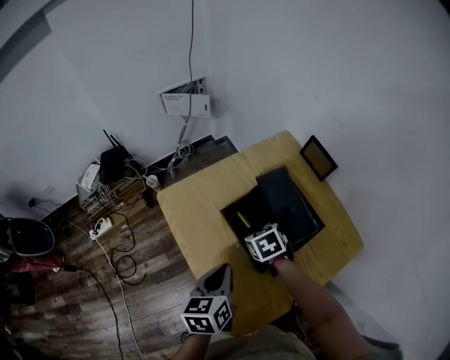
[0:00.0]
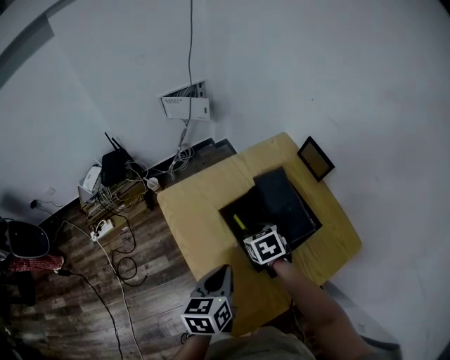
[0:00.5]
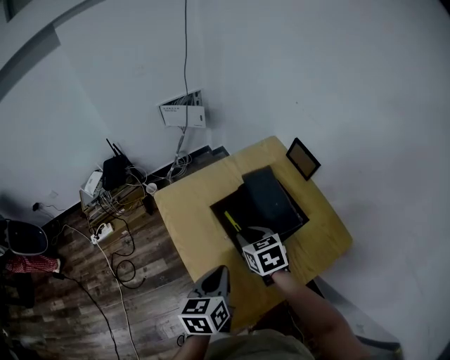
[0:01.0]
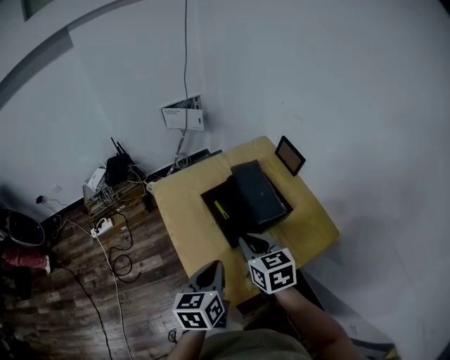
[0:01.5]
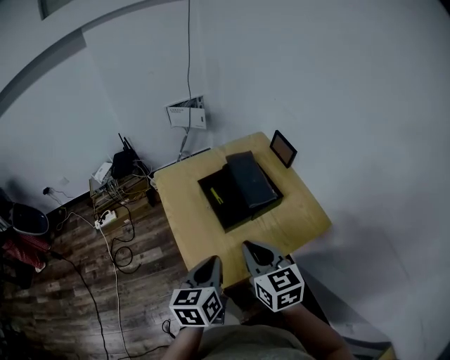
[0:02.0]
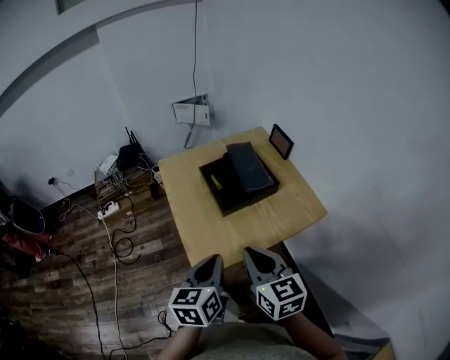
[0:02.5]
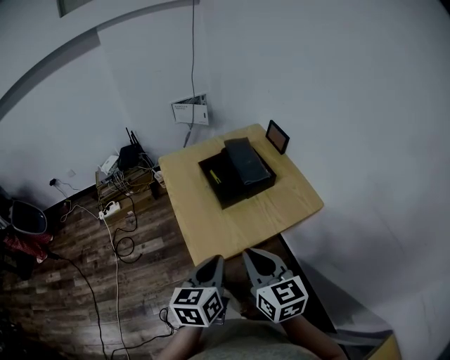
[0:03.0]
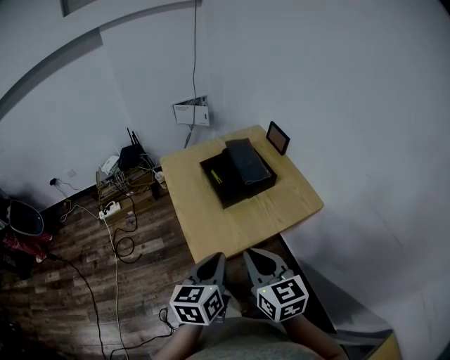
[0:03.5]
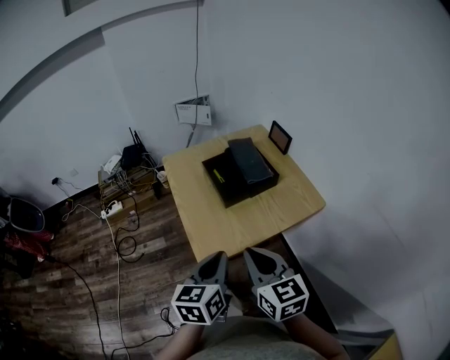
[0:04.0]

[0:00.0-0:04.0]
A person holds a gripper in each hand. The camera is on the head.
0:00.0 to 0:02.0: The right gripper is displaced backward and upward by some 35 cm, and points its fingers roughly 40 degrees further upward, while the left gripper heads backward, upward and to the right, covering roughly 20 cm.
0:02.0 to 0:04.0: The two grippers go about 15 cm backward.

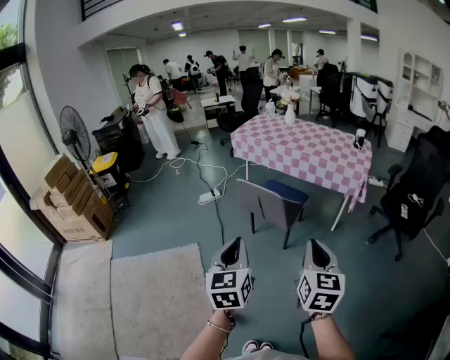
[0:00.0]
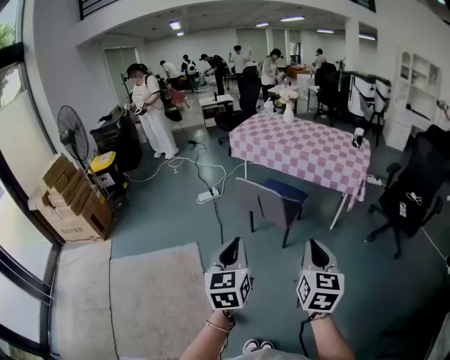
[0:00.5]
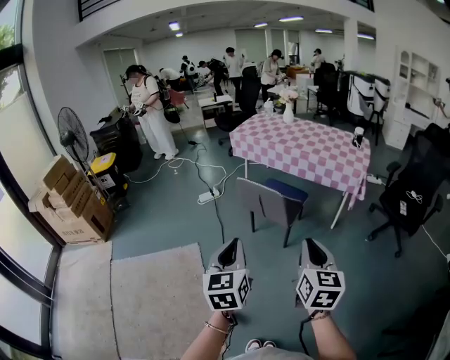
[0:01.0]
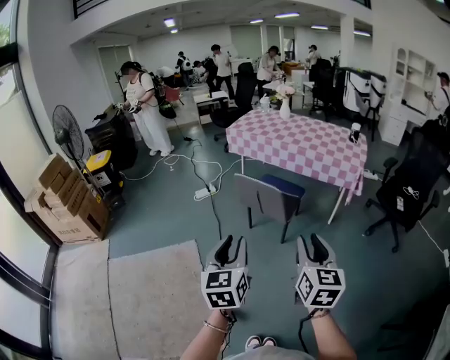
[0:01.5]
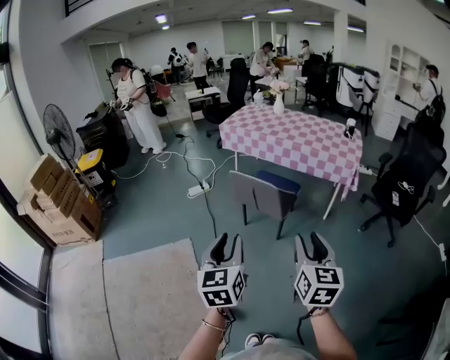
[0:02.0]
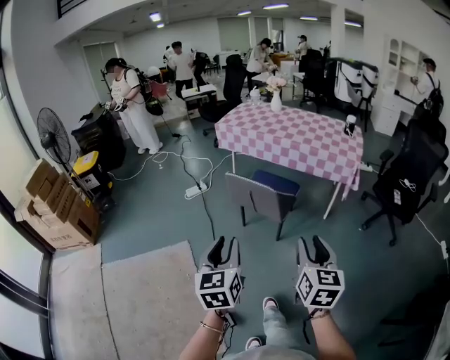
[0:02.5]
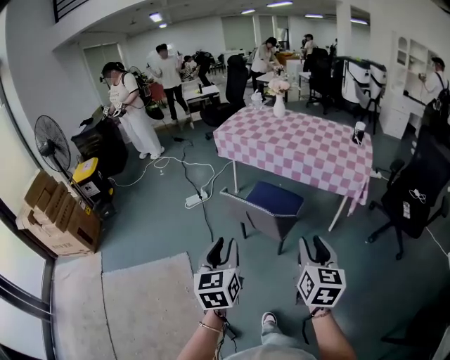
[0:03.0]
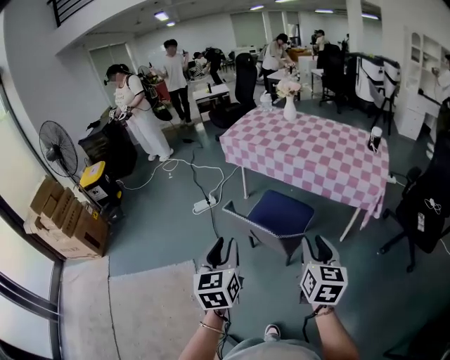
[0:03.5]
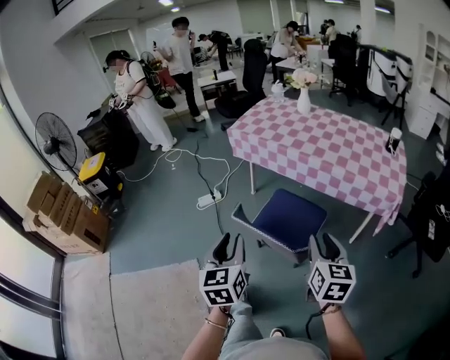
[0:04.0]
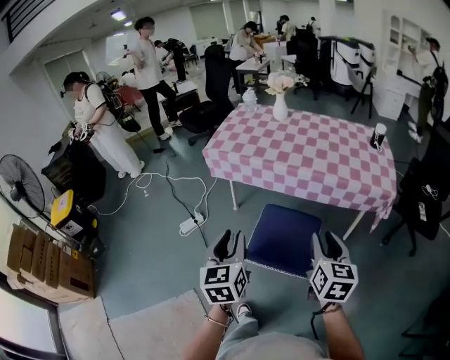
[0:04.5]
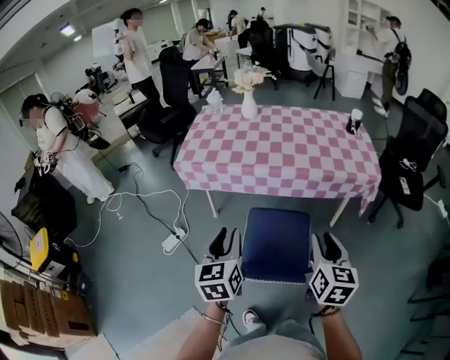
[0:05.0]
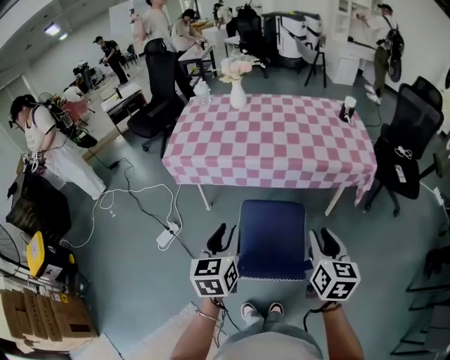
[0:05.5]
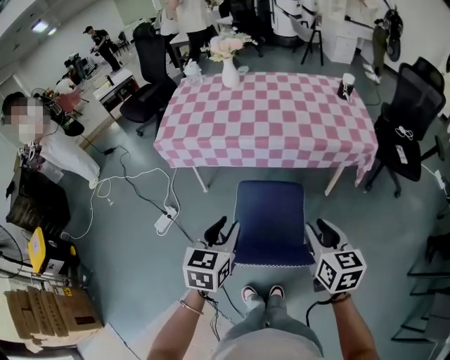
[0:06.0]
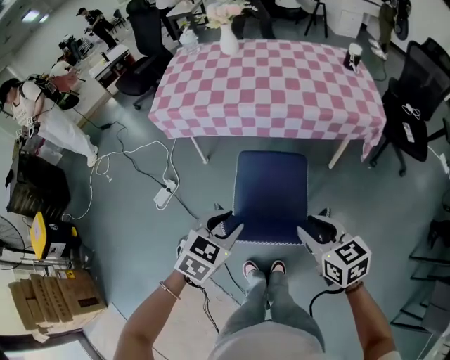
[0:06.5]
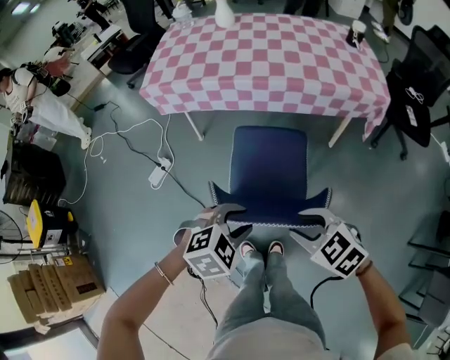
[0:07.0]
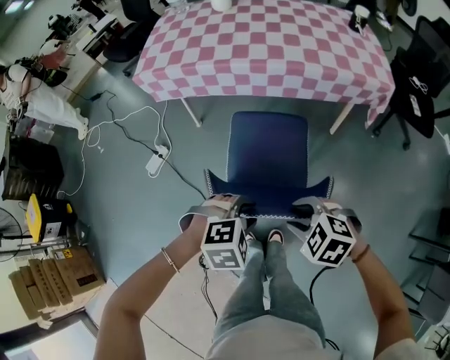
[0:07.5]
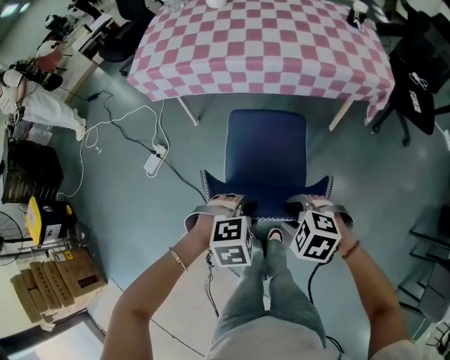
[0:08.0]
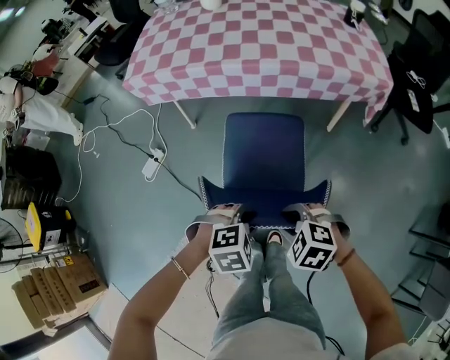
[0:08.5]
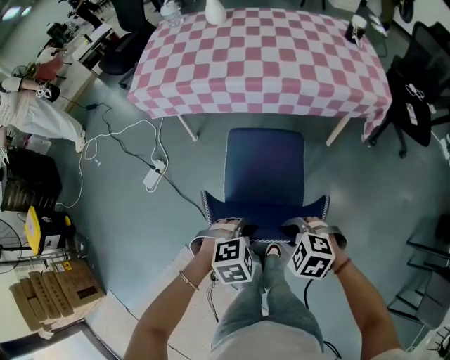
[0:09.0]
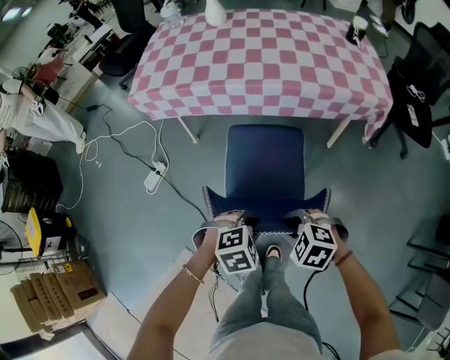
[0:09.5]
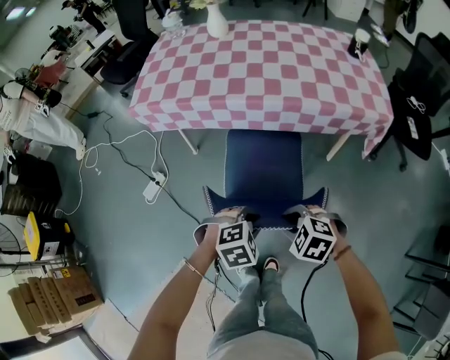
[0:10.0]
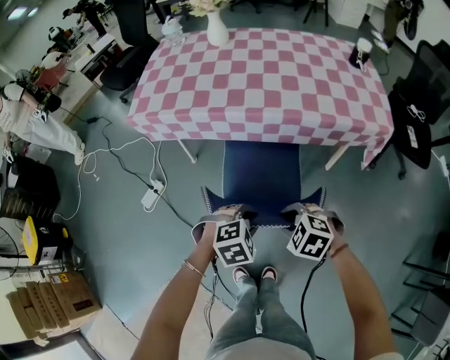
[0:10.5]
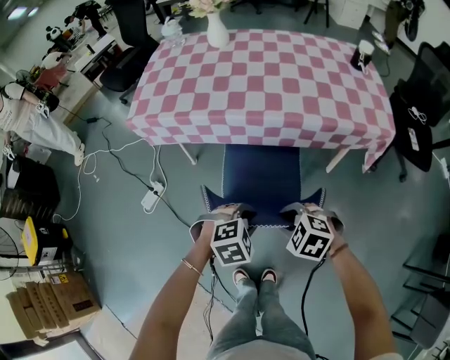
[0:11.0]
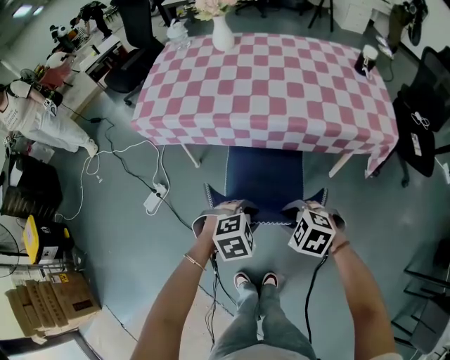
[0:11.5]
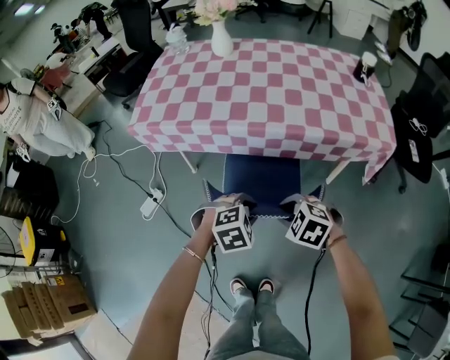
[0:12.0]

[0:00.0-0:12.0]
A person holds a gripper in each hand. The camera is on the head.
0:00.0 to 0:02.0: The left gripper opens up. The right gripper opens.
0:02.0 to 0:04.0: Both grippers move forward, about 40 cm.
0:04.0 to 0:06.0: The left gripper ends up roughly 25 cm from where it was, and turns by roughly 50 degrees. Meanwhile the right gripper moves approximately 15 cm.
0:06.0 to 0:08.0: Both grippers travel together downward, approximately 20 cm. The left gripper tilts its fingers some 40 degrees downward, while the right gripper points its fingers roughly 40 degrees further downward.
0:08.0 to 0:10.0: The left gripper moves roughly 10 cm, while the right gripper moves roughly 10 cm.
0:10.0 to 0:12.0: The right gripper ends up approximately 15 cm from where it was. The left gripper moves about 15 cm.

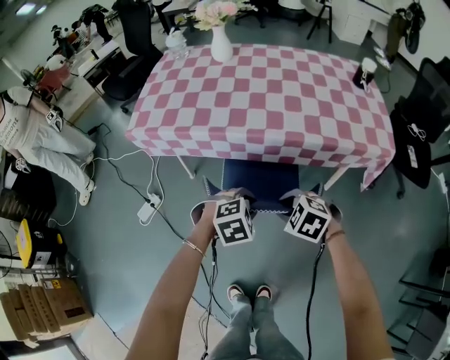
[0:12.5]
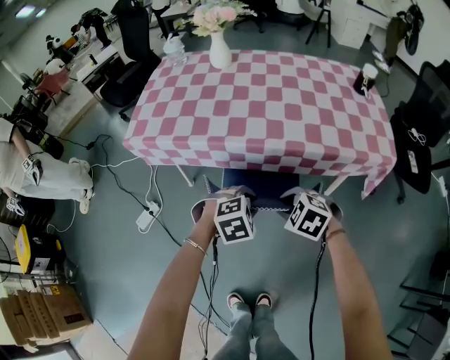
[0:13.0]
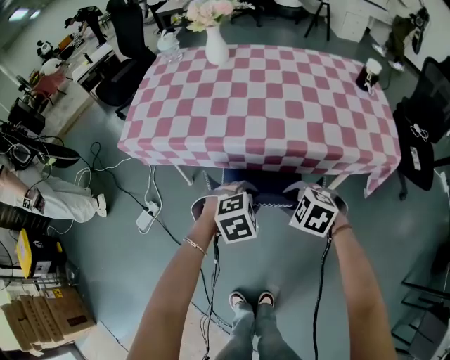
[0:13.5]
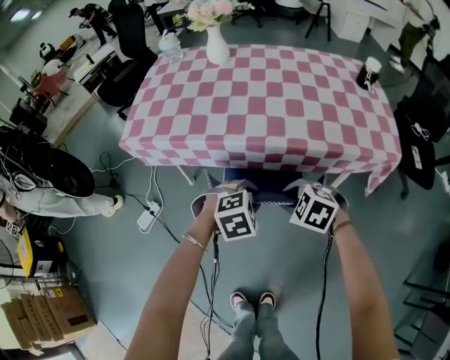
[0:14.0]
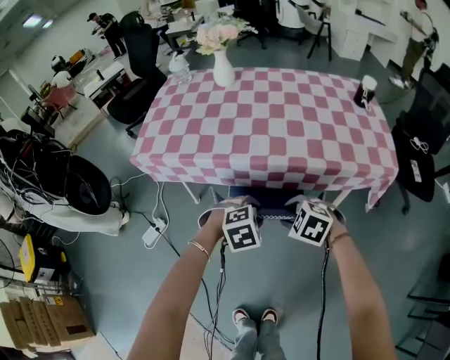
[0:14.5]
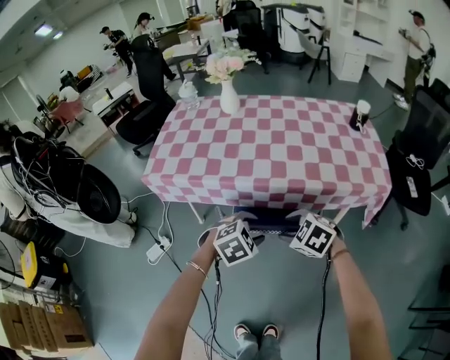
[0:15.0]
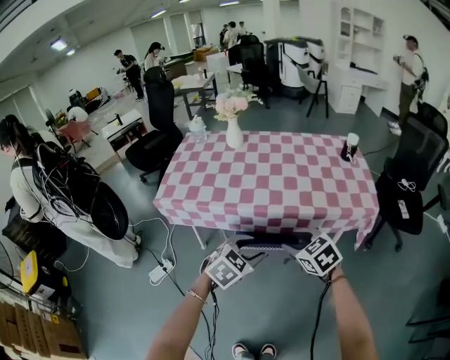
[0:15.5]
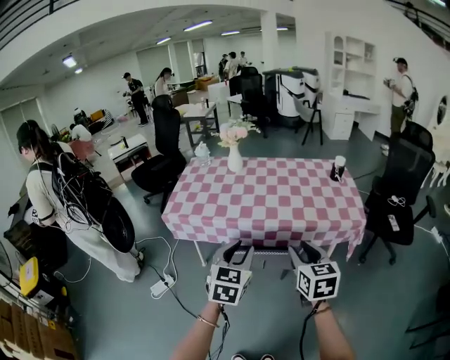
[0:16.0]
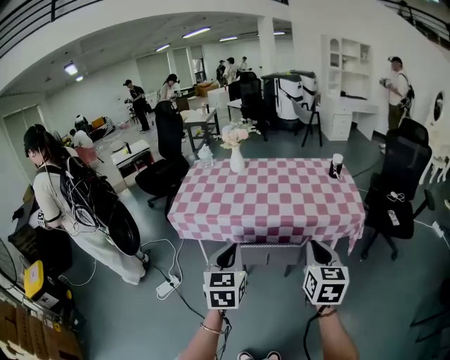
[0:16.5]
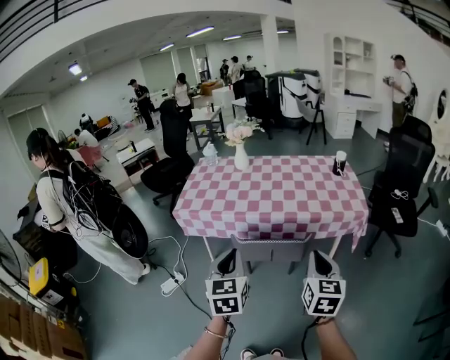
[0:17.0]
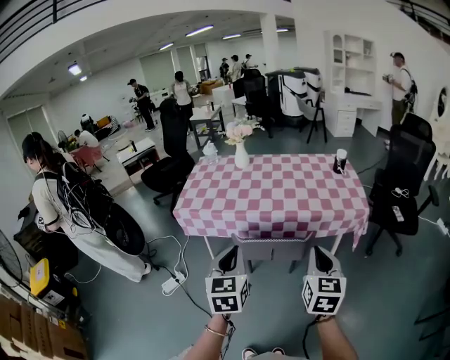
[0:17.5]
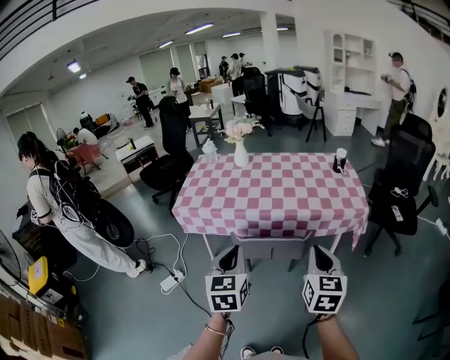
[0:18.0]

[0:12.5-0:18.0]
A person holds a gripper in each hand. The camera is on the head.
0:12.5 to 0:14.5: The two grippers go some 5 cm forward.
0:14.5 to 0:16.0: The two grippers go approximately 30 cm upward. The left gripper angles its fingers upward, by about 50 degrees. The right gripper tips its fingers upward by some 40 degrees.
0:16.0 to 0:18.0: The two grippers go about 10 cm backward. The right gripper closes up. The left gripper closes.

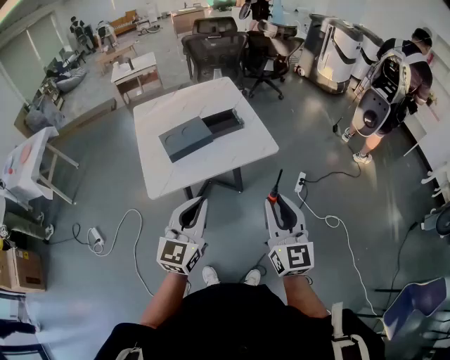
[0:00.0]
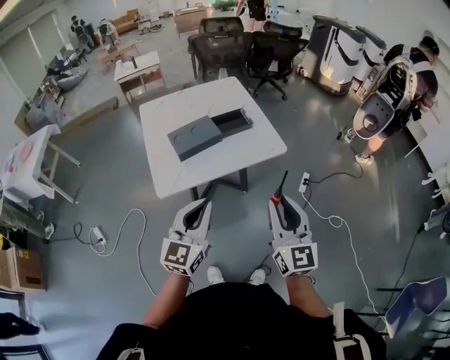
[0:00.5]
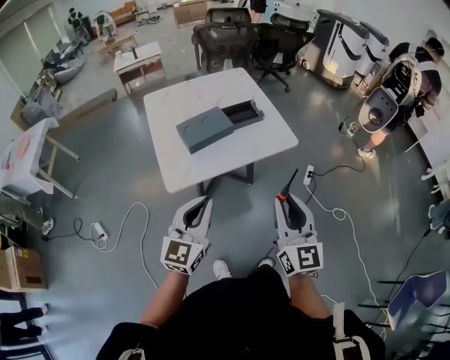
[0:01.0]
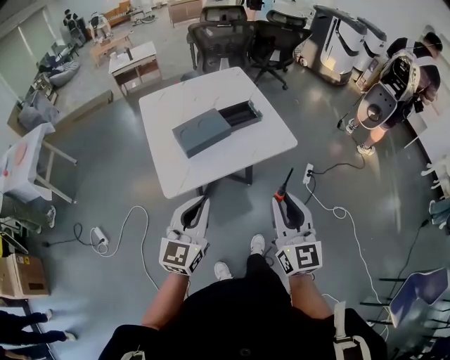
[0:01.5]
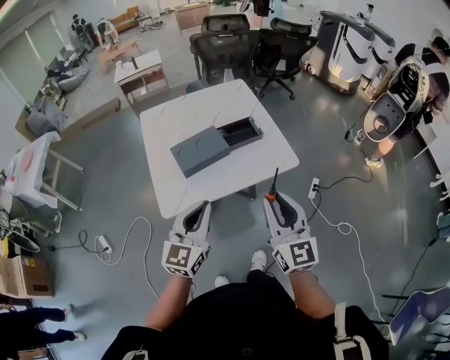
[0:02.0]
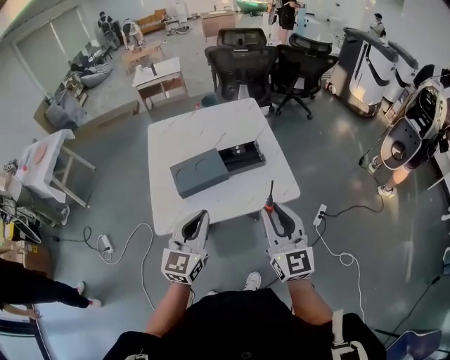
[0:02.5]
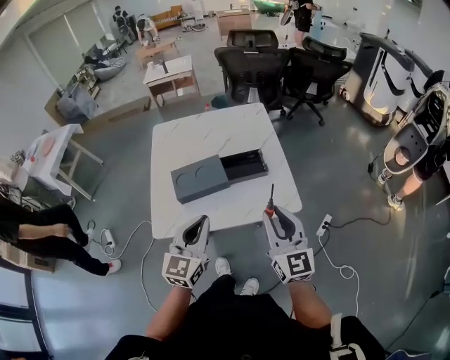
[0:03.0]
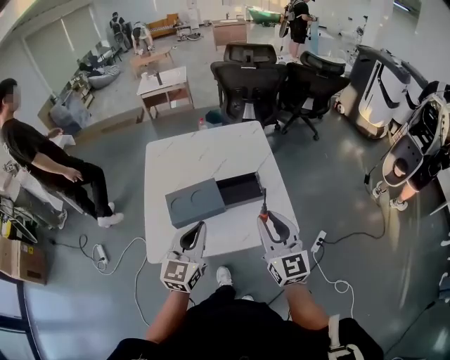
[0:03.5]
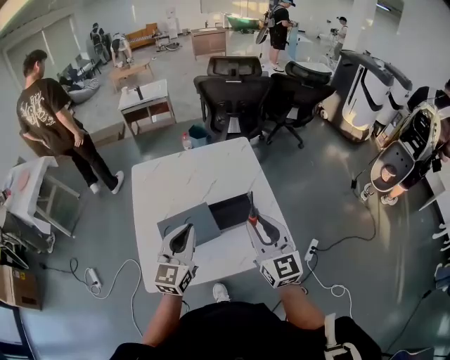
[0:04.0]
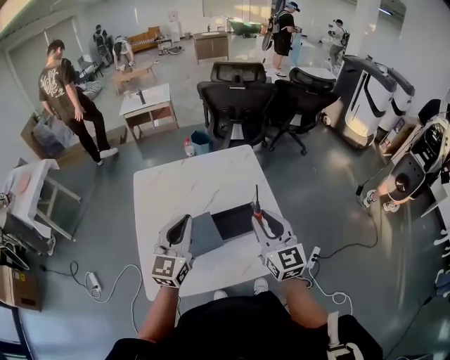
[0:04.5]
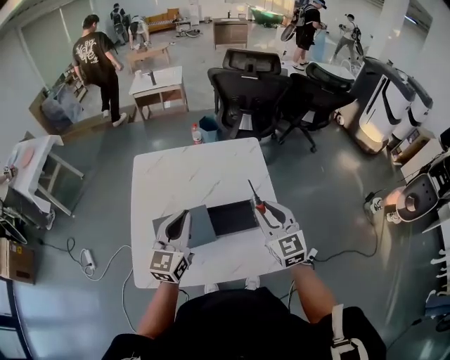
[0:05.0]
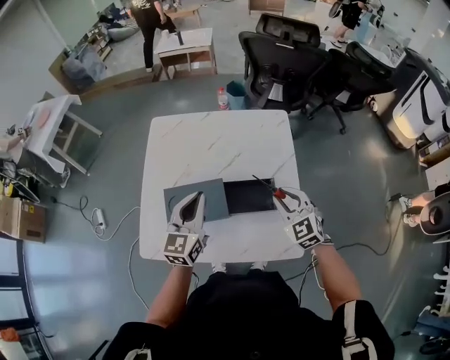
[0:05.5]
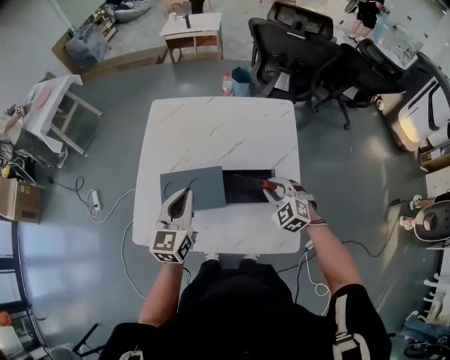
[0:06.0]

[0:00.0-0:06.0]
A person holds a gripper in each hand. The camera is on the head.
0:00.0 to 0:02.0: Both grippers move forward and to the left, approximately 10 cm.
0:02.0 to 0:04.0: The grippers both shift forward by roughly 30 cm.
0:04.0 to 0:06.0: The left gripper is displaced downward and forward by roughly 10 cm, and swivels about 20 degrees, while the right gripper shifts roughly 25 cm downward and forward, and tilts its fingers approximately 40 degrees downward.
